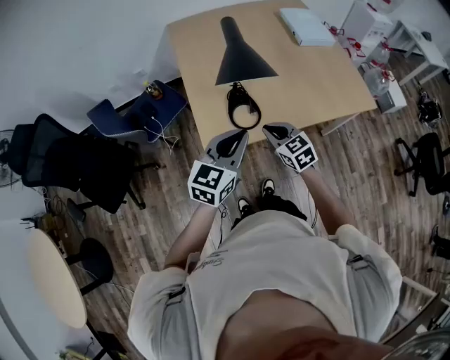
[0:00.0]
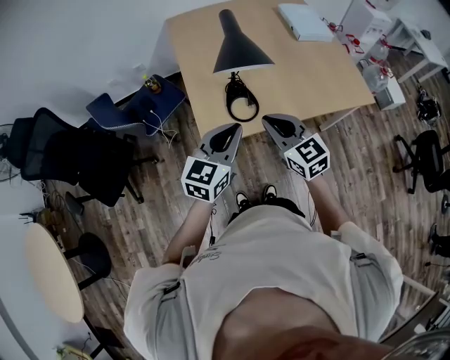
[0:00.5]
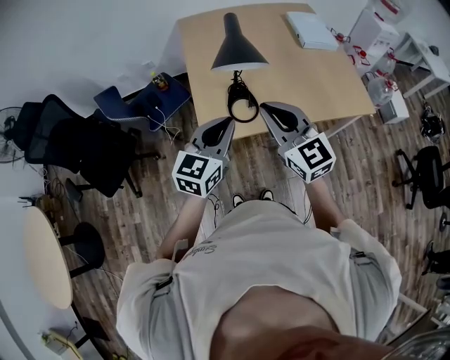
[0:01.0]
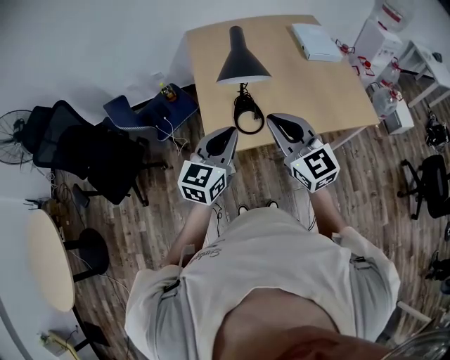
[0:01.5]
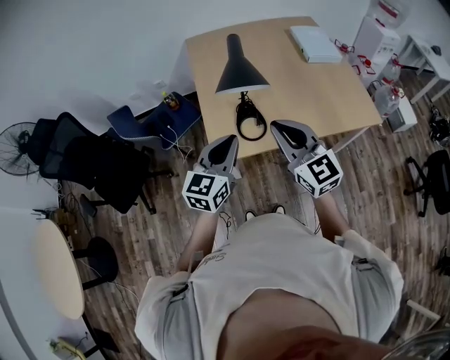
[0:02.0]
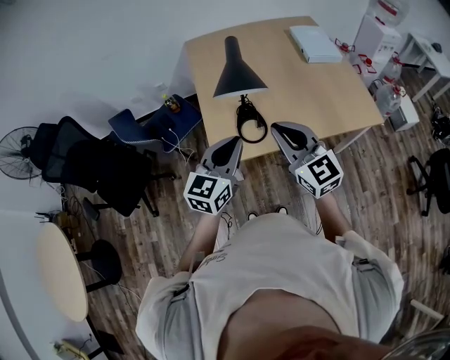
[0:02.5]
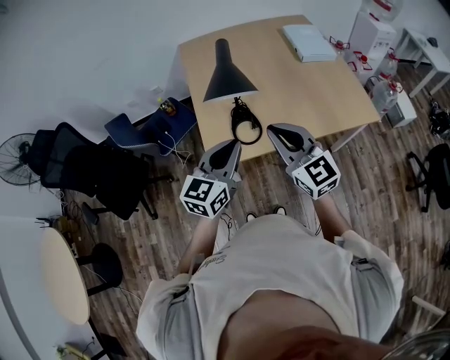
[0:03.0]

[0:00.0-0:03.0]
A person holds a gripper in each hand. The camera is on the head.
0:00.0 to 0:01.5: The left gripper shifts by roughly 5 cm. Meanwhile the right gripper travels upward by approximately 20 cm, and turns by some 30 degrees.
0:01.5 to 0:03.0: The grippers make only small movements.

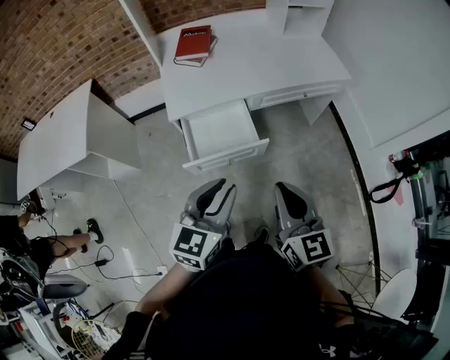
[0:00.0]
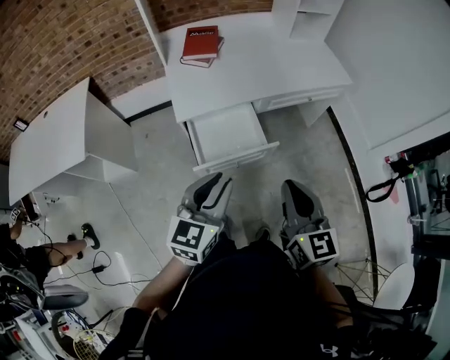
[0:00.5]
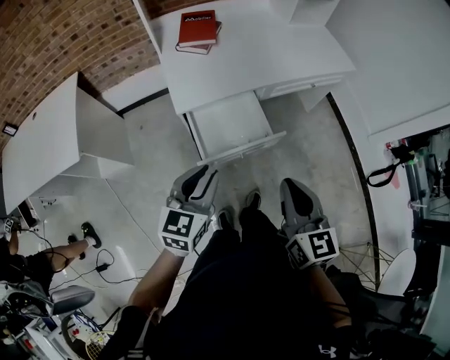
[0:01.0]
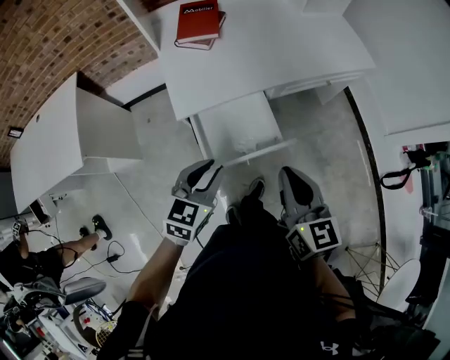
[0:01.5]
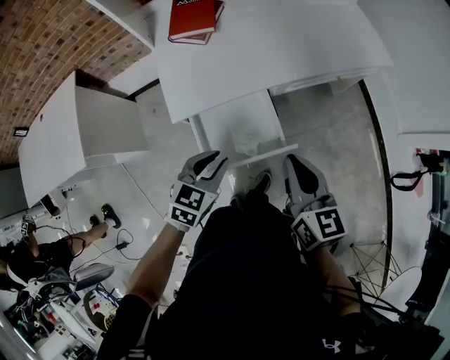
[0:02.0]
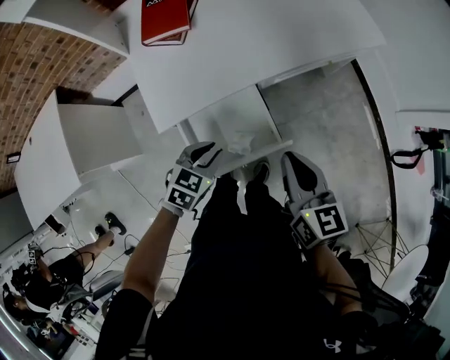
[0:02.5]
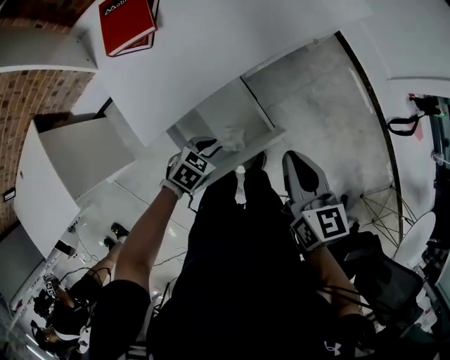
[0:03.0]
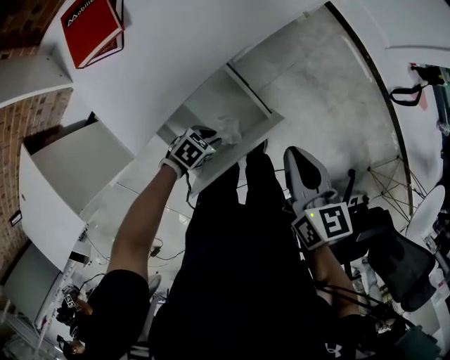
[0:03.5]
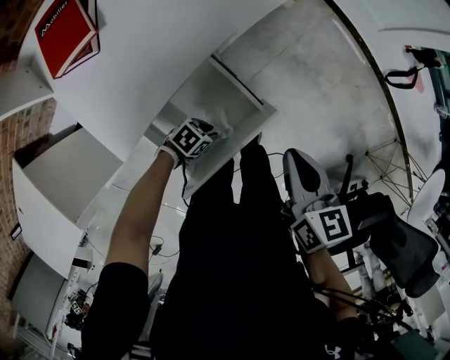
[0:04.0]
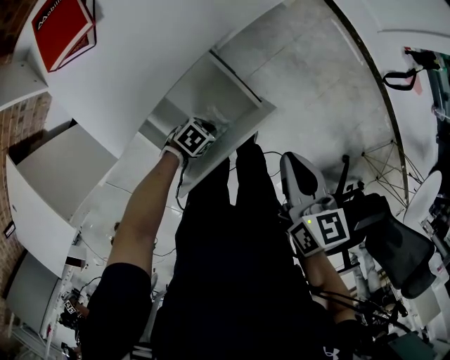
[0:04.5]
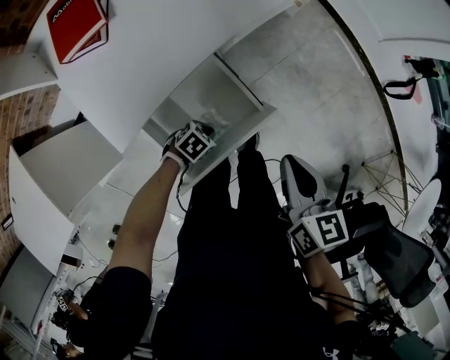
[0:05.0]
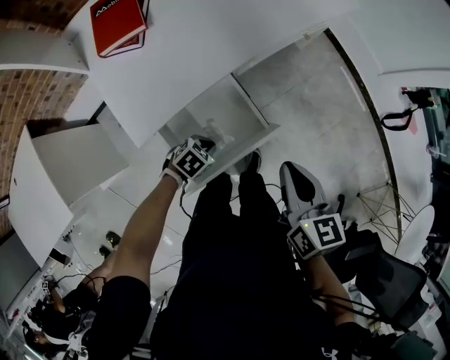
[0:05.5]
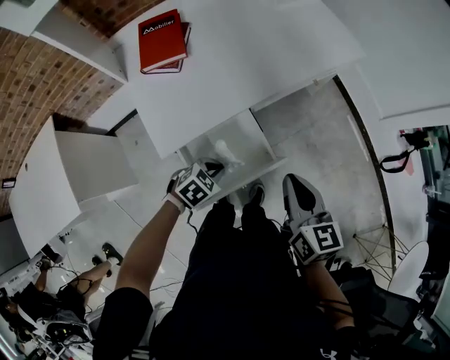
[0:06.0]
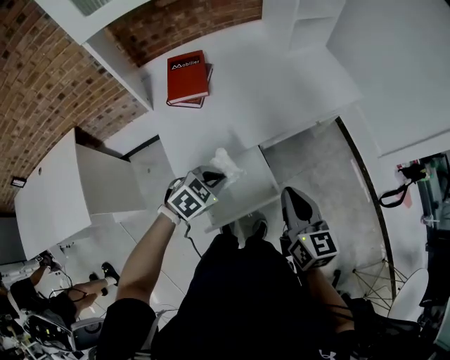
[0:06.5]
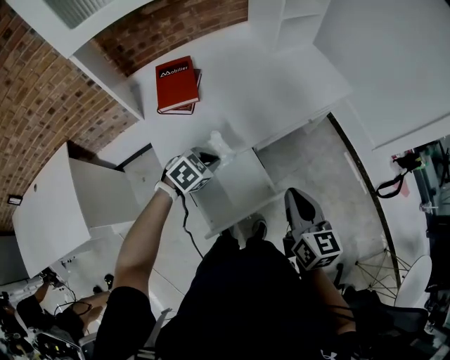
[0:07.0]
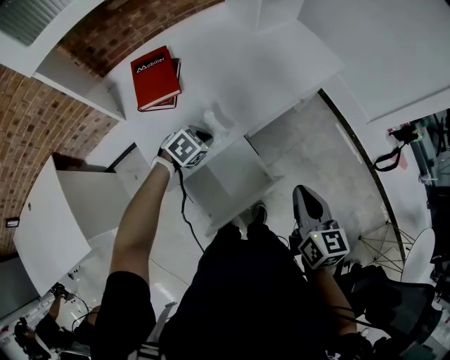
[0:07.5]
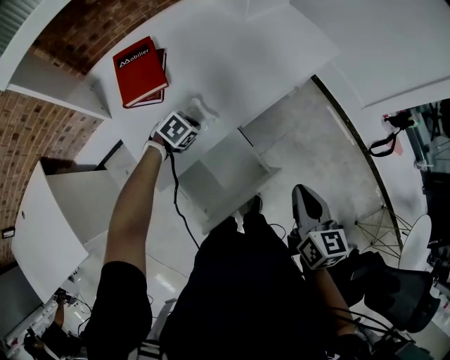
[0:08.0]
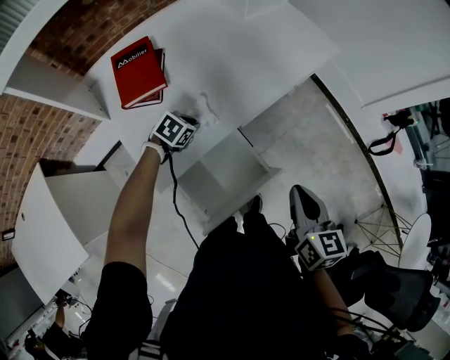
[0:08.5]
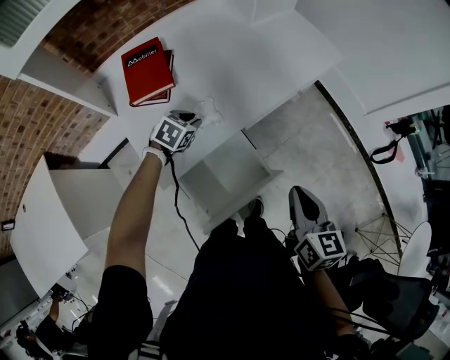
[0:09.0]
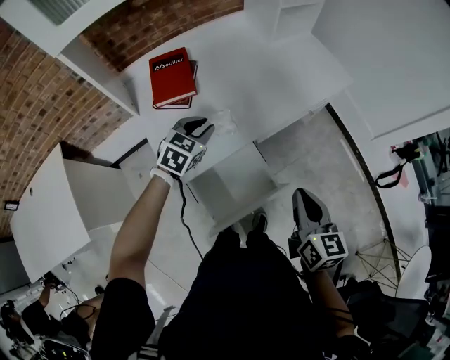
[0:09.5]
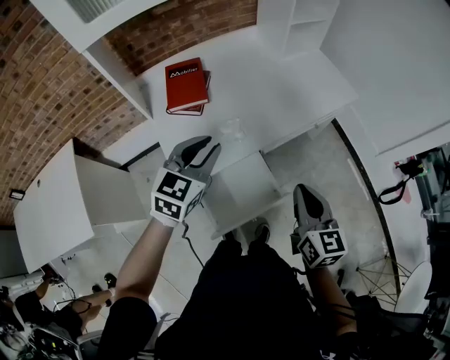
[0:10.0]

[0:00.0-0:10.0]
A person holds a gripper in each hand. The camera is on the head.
0:00.0 to 0:02.0: The left gripper shifts roughly 30 cm forward, downward and to the left, and swivels roughly 30 degrees; the right gripper moves forward and downward, roughly 20 cm.
0:02.0 to 0:04.0: The right gripper heads downward, covering about 10 cm, and changes its angle by some 30 degrees. The left gripper is displaced downward by some 30 cm, and changes its angle by some 60 degrees.
0:04.0 to 0:06.0: The right gripper moves upward, roughly 10 cm, and swivels some 20 degrees, while the left gripper shifts some 20 cm upward, rotates some 30 degrees, and closes its fingers.
0:06.0 to 0:08.0: The left gripper shifts some 25 cm forward and to the left.
0:08.0 to 0:10.0: The right gripper shifts some 5 cm upward. Meanwhile the left gripper goes some 30 cm upward, points its fingers some 40 degrees further upward, and opens.

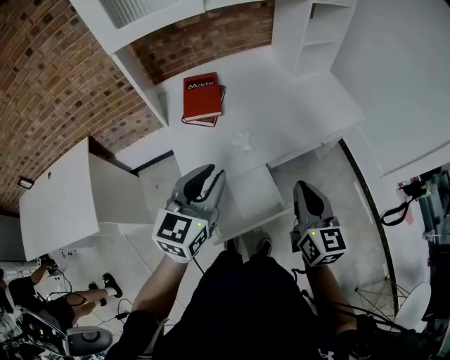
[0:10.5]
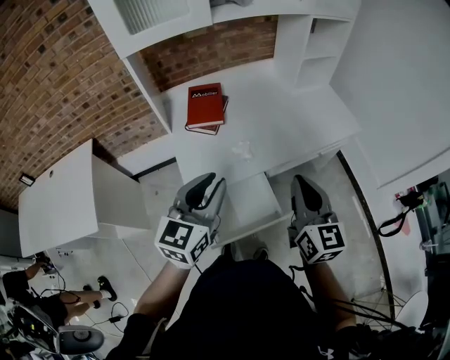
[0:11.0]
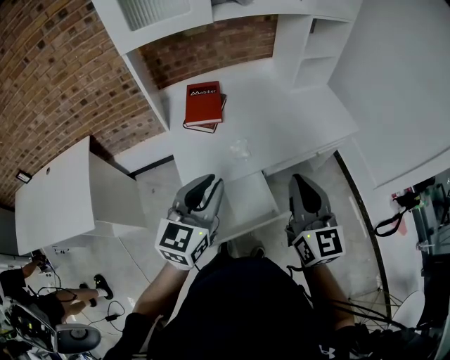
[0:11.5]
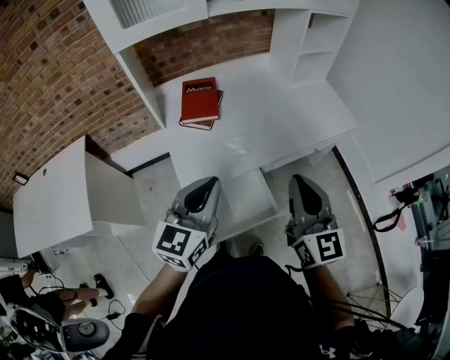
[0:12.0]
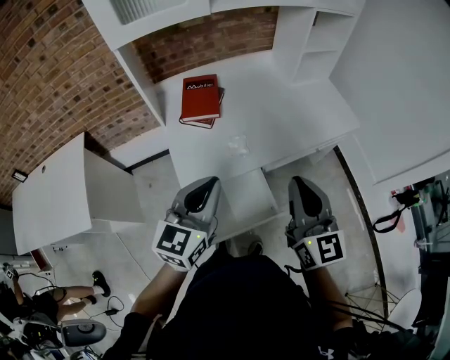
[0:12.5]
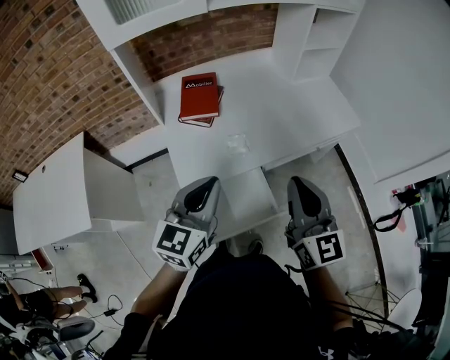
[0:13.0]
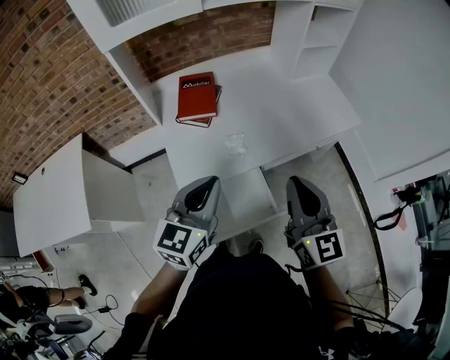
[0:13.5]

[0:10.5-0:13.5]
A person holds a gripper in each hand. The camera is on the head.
0:10.5 to 0:12.0: The left gripper closes up; the right gripper is displaced upward by some 10 cm.
0:12.0 to 0:13.5: The grippers make only small movements.

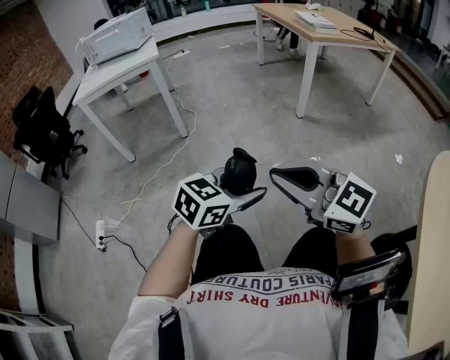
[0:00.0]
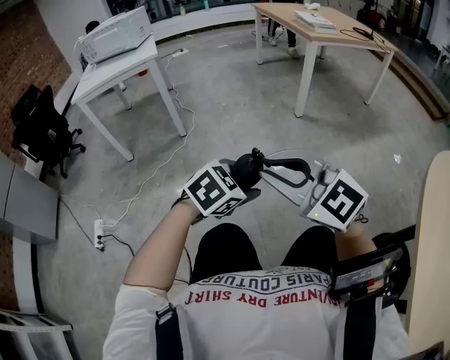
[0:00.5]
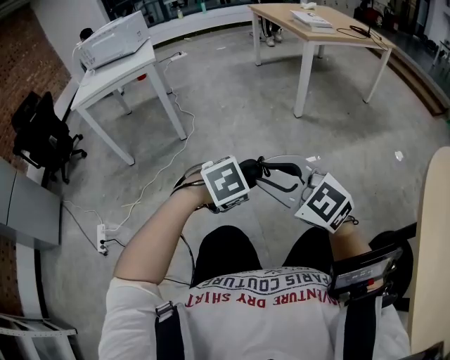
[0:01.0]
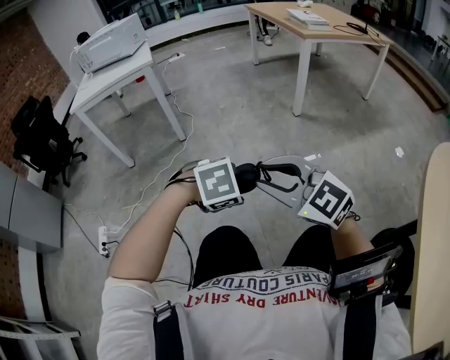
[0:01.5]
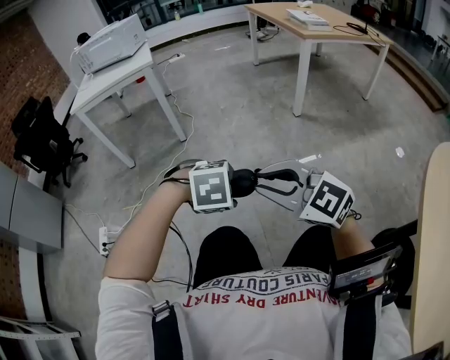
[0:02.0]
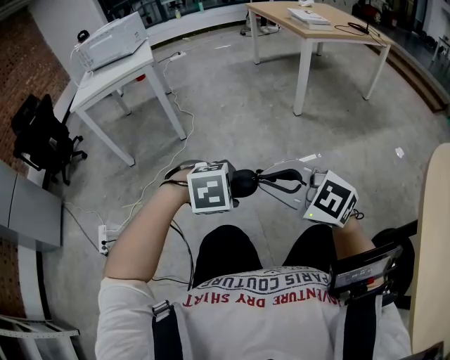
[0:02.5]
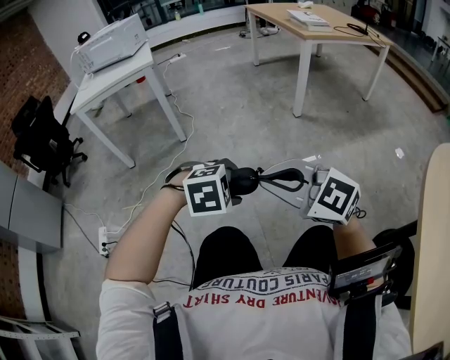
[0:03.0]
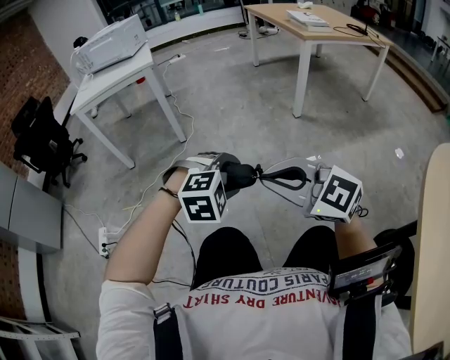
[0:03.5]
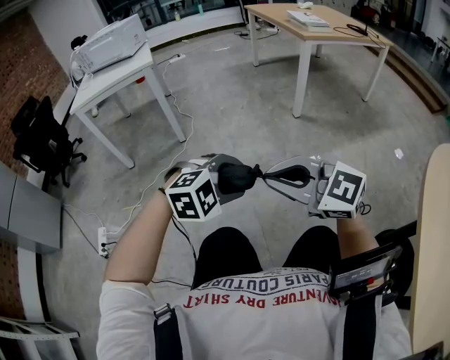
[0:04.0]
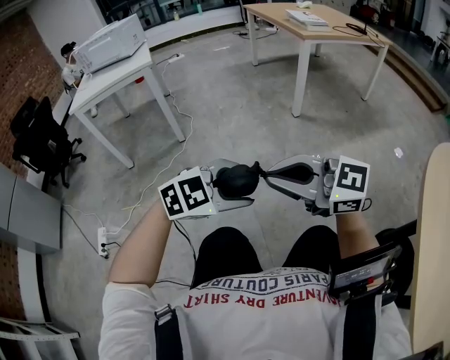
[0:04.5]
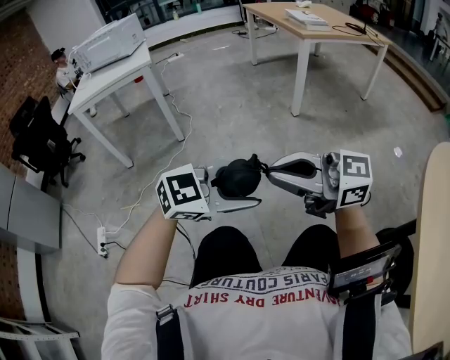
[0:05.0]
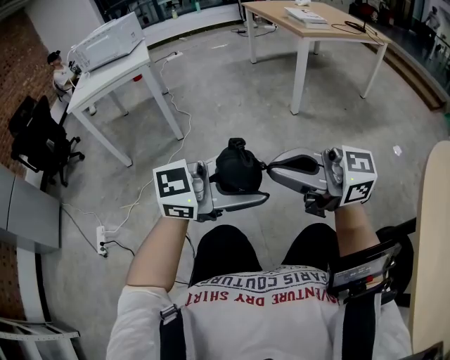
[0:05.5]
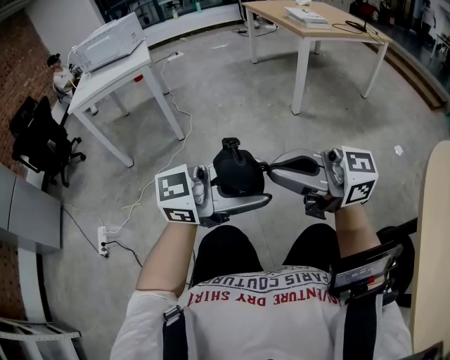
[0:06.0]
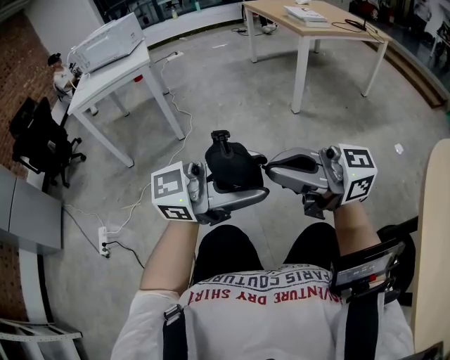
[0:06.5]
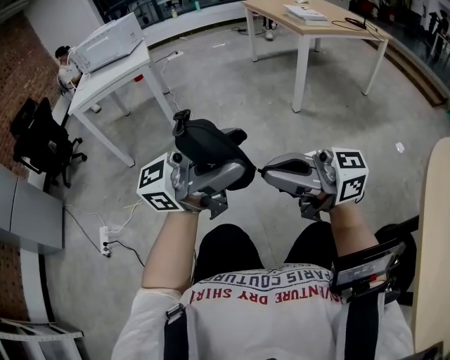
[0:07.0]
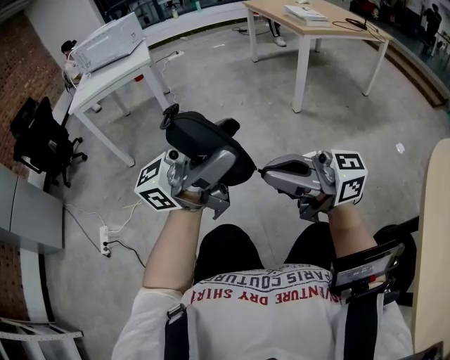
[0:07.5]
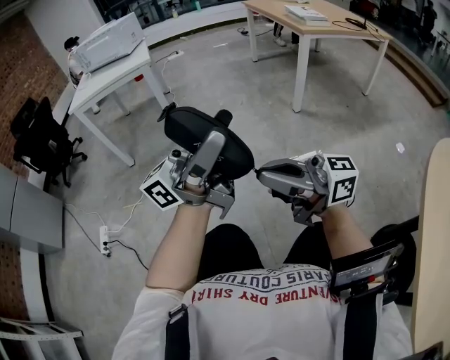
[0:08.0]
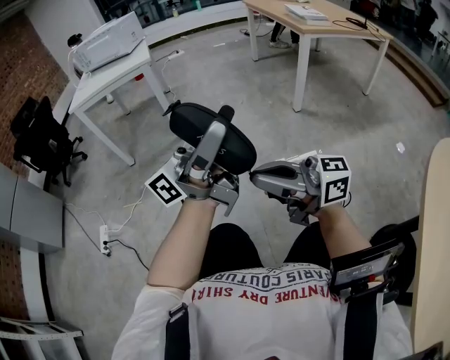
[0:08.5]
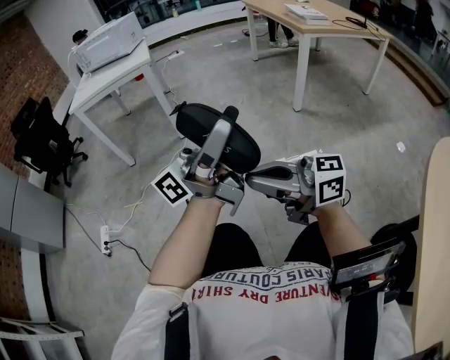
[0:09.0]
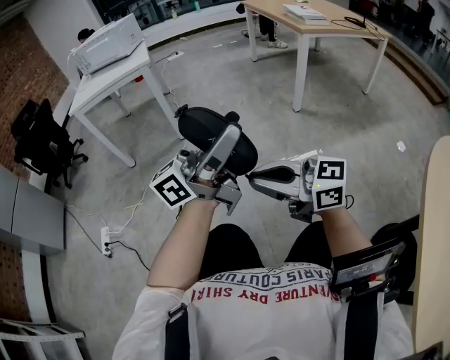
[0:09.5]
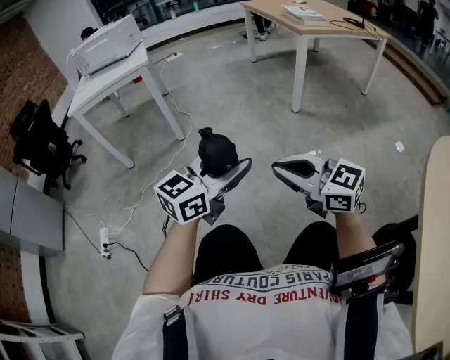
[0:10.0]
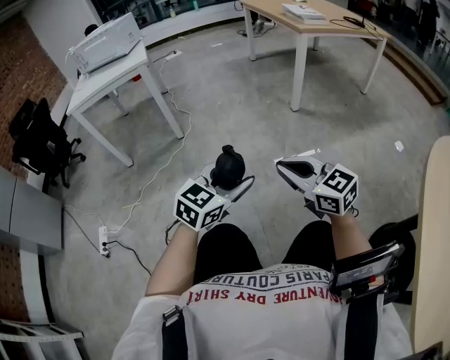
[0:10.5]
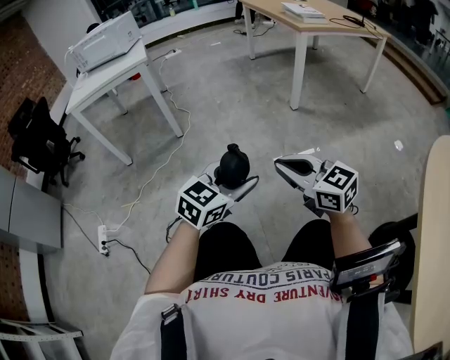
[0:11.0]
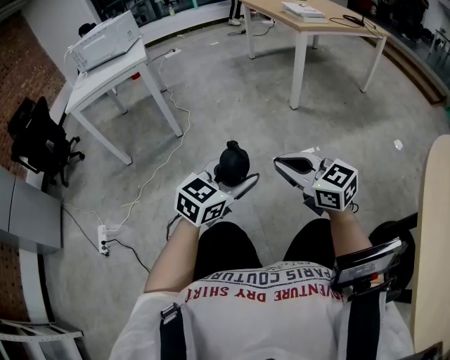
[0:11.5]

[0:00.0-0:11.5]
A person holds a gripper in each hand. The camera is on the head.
0:00.0 to 0:02.0: The left gripper ends up about 5 cm from where it was, and points its fingers some 50 degrees further downward.
0:02.0 to 0:04.0: The left gripper changes its angle by approximately 30 degrees.
0:04.0 to 0:06.0: The left gripper goes about 15 cm upward, and tips its fingers upward by roughly 50 degrees. Meanwhile the right gripper heads upward, covering roughly 5 cm, and turns by some 40 degrees.
0:06.0 to 0:07.5: The left gripper travels upward by about 10 cm, and swivels some 30 degrees.
0:07.5 to 0:09.5: The right gripper heads downward, covering about 5 cm. Meanwhile the left gripper ends up approximately 5 cm from where it was.
0:09.5 to 0:11.5: The right gripper moves approximately 10 cm, and changes its angle by roughly 30 degrees. Meanwhile the left gripper travels downward by about 20 cm, and points its fingers some 50 degrees further downward.
